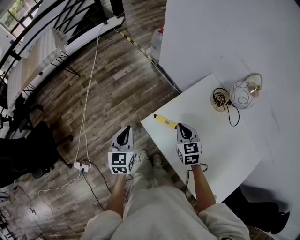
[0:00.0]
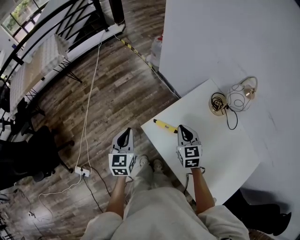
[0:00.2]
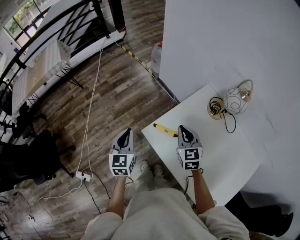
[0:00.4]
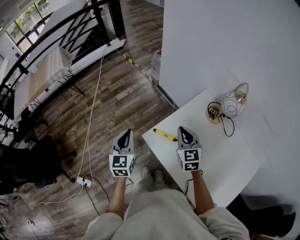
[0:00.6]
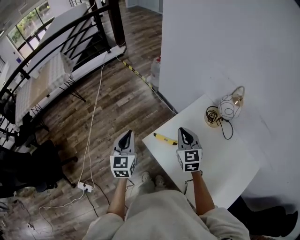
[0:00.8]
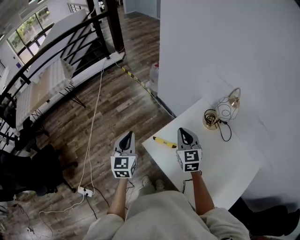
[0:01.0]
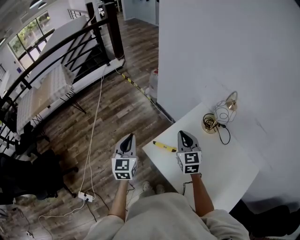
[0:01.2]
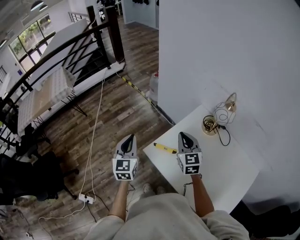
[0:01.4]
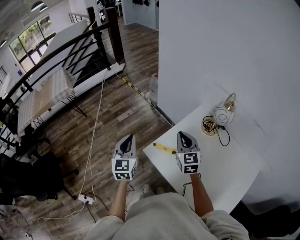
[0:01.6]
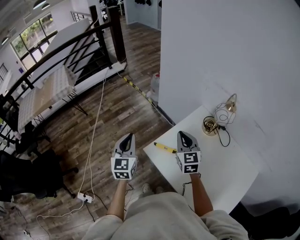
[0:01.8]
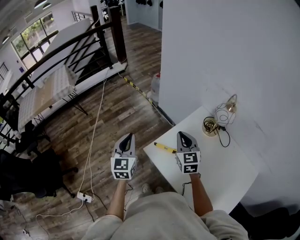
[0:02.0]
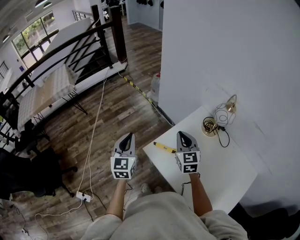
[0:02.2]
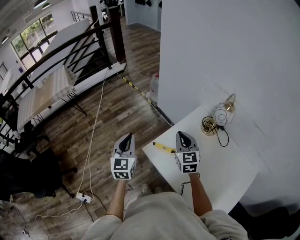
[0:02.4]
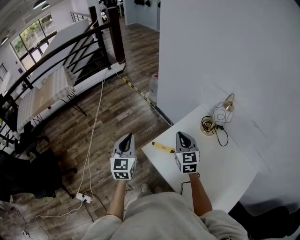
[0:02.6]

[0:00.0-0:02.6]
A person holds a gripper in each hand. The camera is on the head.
0:00.0 to 0:01.2: Both grippers move upward, about 15 cm. The right gripper turns by approximately 20 degrees.
0:01.2 to 0:02.6: The grippers move only a little.

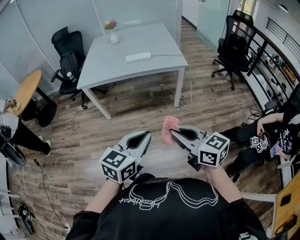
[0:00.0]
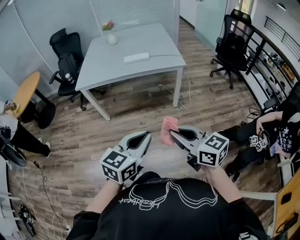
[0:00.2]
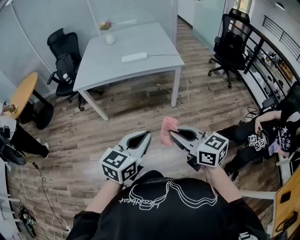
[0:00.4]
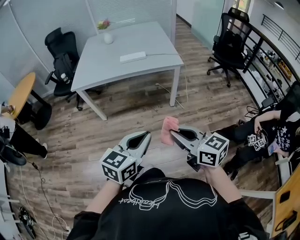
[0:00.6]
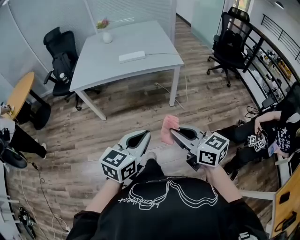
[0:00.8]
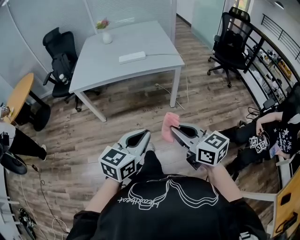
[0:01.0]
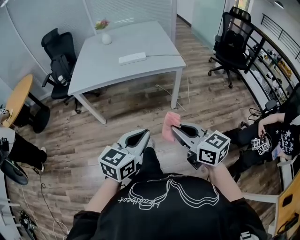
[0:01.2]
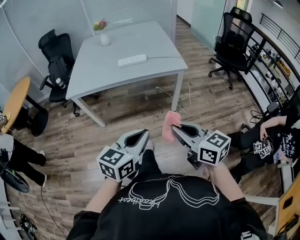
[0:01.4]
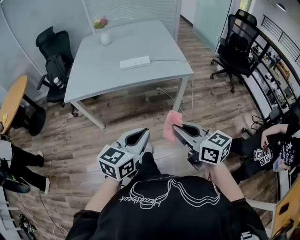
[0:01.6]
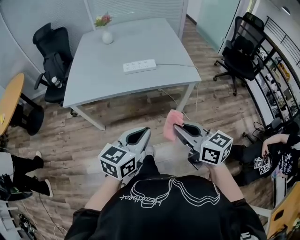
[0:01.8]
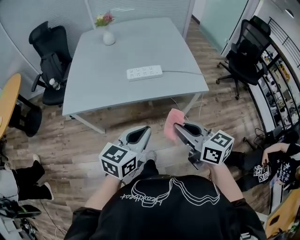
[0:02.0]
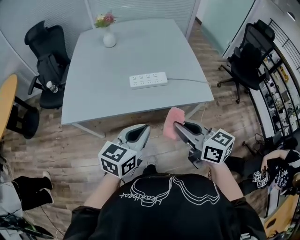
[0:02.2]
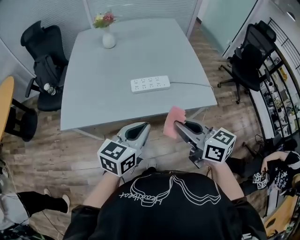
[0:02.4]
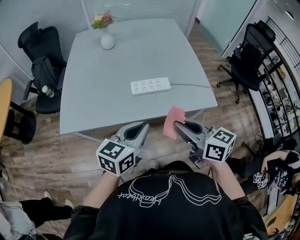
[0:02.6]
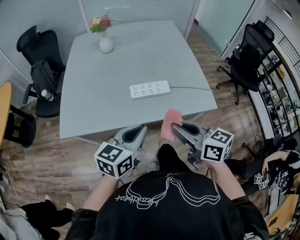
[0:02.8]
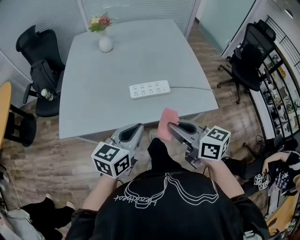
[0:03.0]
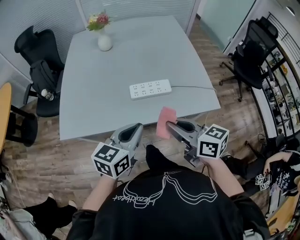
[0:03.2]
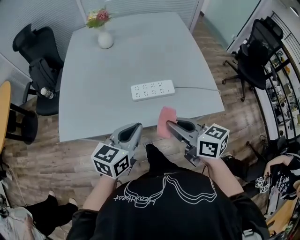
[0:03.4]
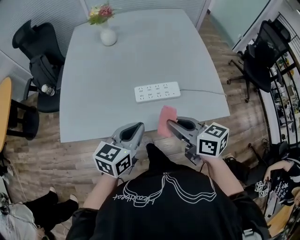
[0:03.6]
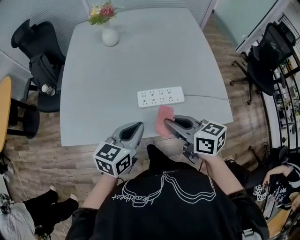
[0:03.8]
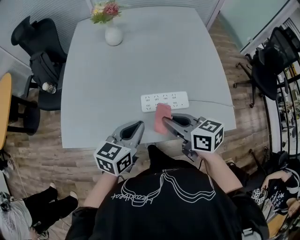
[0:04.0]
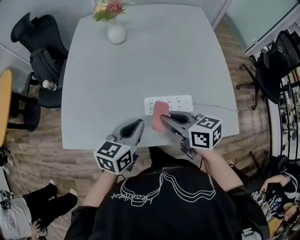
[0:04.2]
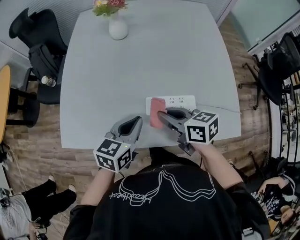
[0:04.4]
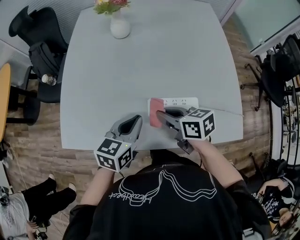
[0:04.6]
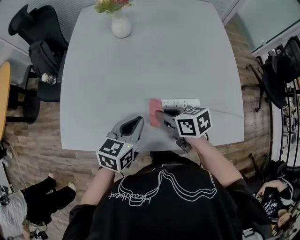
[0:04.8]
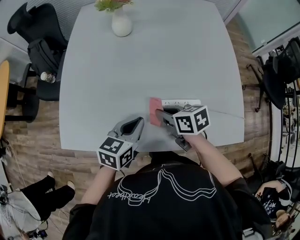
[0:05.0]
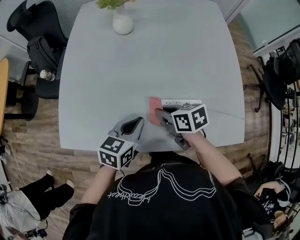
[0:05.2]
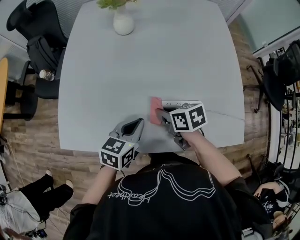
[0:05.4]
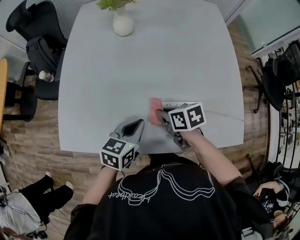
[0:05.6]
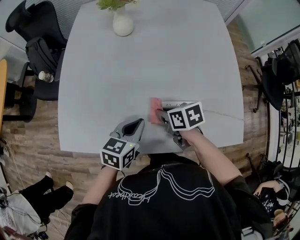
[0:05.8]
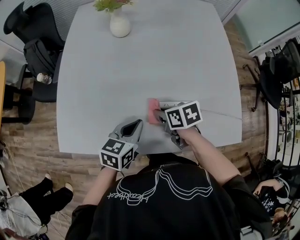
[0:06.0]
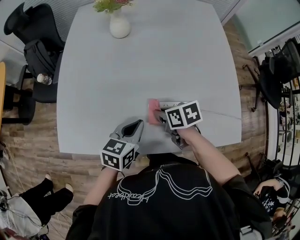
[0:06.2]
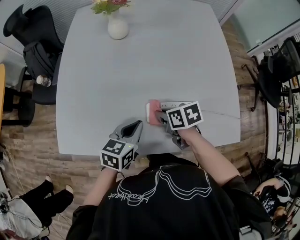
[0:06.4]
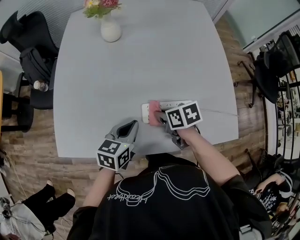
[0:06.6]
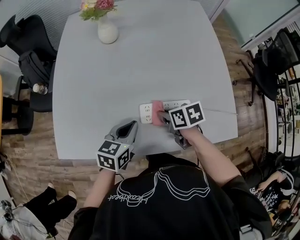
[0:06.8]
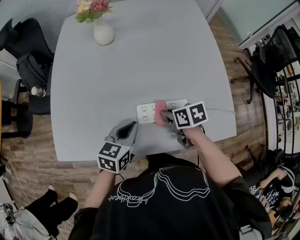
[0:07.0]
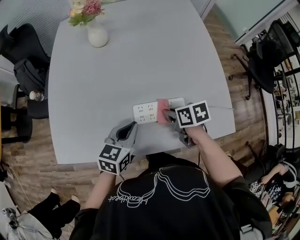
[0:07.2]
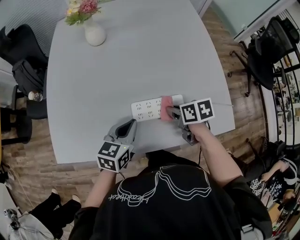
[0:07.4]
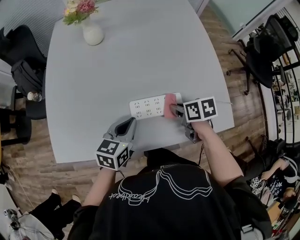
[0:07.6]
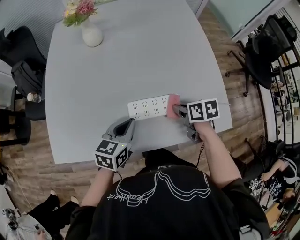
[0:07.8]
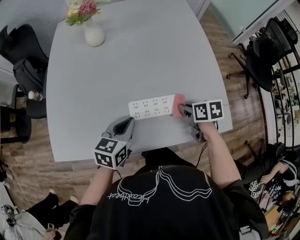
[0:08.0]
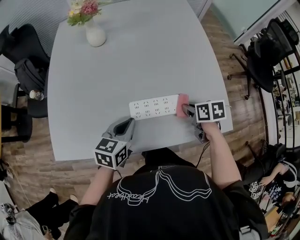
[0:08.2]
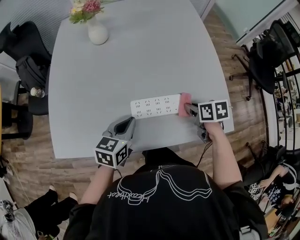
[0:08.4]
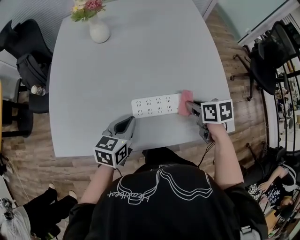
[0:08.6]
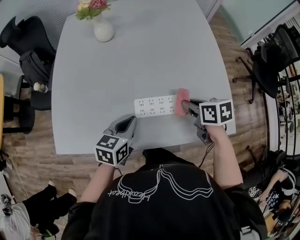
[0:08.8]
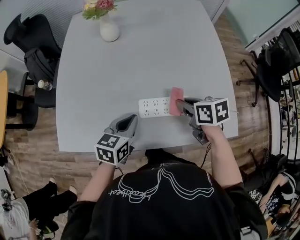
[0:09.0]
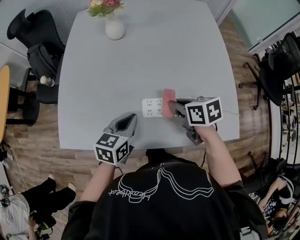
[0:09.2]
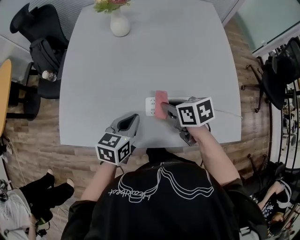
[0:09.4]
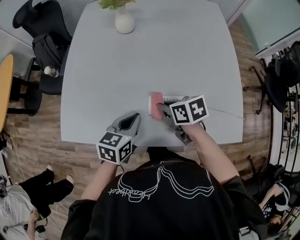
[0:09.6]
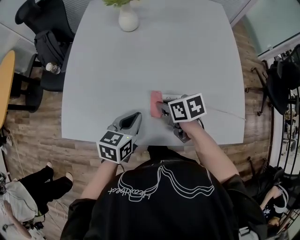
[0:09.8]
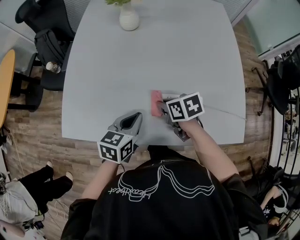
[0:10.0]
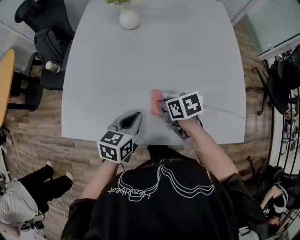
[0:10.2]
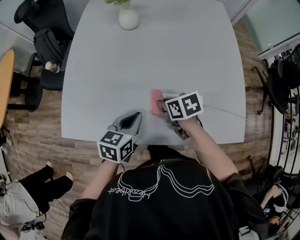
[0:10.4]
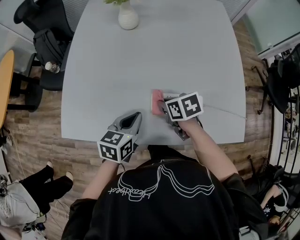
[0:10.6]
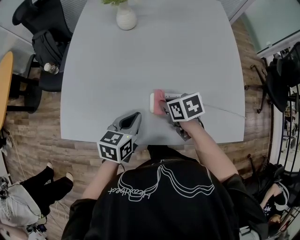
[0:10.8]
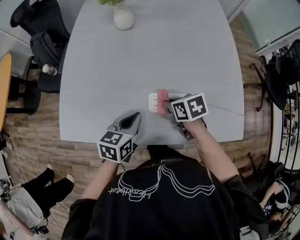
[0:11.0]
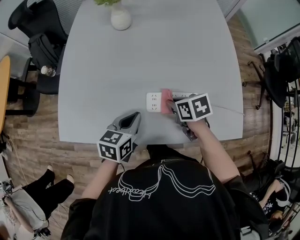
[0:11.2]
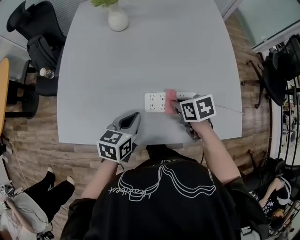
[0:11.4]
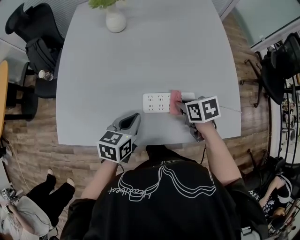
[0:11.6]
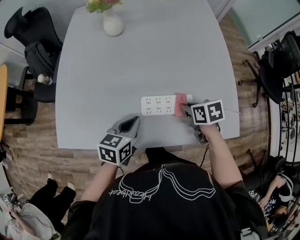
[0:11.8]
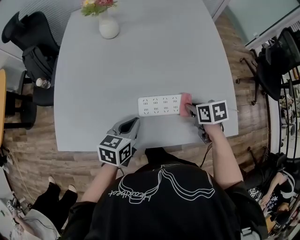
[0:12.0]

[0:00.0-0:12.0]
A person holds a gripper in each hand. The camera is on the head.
0:00.0 to 0:01.6: Both grippers move forward, some 20 cm.
0:01.6 to 0:03.0: Both grippers travel together forward, roughly 35 cm.
0:03.0 to 0:04.4: The two grippers go roughly 25 cm forward and downward.
0:04.4 to 0:06.0: The right gripper is displaced downward and forward by roughly 10 cm, and swivels some 30 degrees; the left gripper goes roughly 5 cm downward.
0:06.0 to 0:07.6: The left gripper shifts by some 5 cm; the right gripper travels to the right by roughly 15 cm.
0:07.6 to 0:09.0: The right gripper shifts some 5 cm upward, and moves roughly 5 cm to the right and comes back.
0:09.0 to 0:10.4: The right gripper goes approximately 15 cm to the left and downward.
0:10.4 to 0:12.0: The right gripper is displaced to the right by roughly 20 cm.

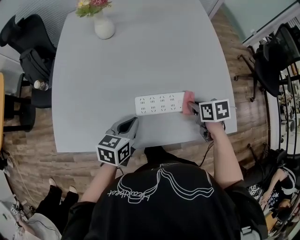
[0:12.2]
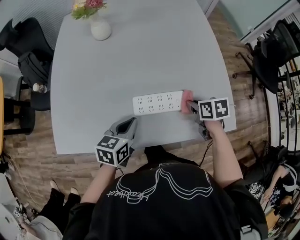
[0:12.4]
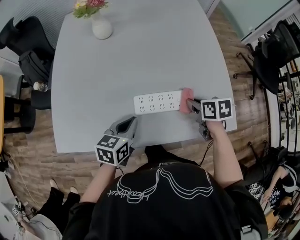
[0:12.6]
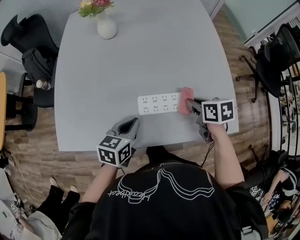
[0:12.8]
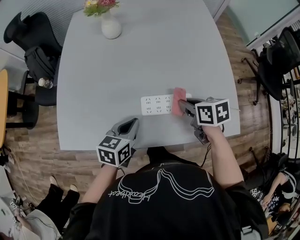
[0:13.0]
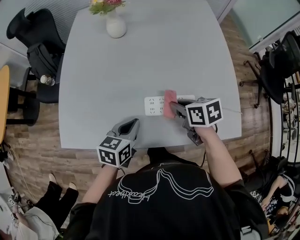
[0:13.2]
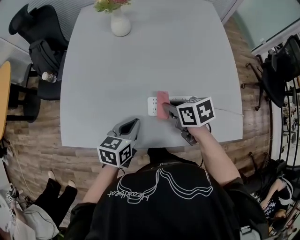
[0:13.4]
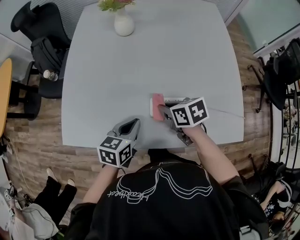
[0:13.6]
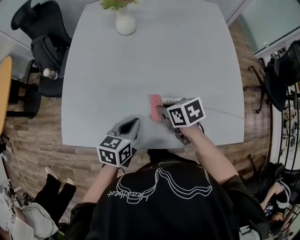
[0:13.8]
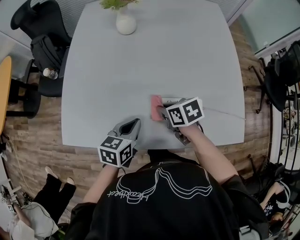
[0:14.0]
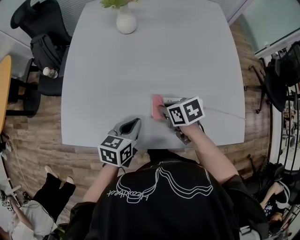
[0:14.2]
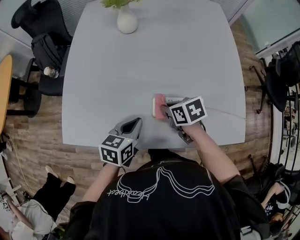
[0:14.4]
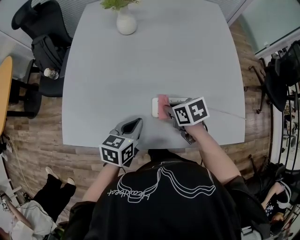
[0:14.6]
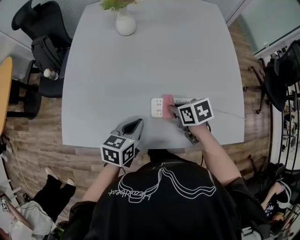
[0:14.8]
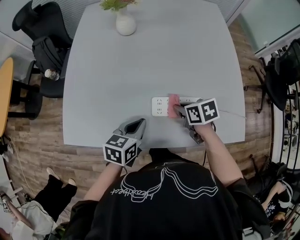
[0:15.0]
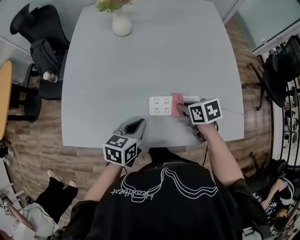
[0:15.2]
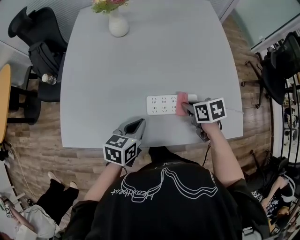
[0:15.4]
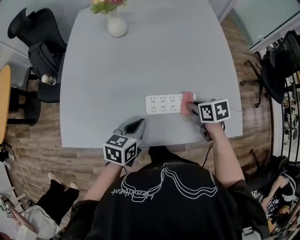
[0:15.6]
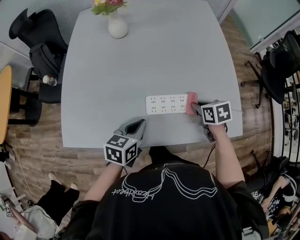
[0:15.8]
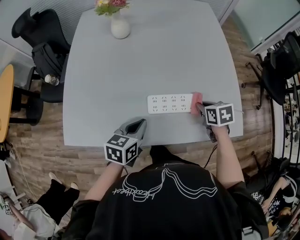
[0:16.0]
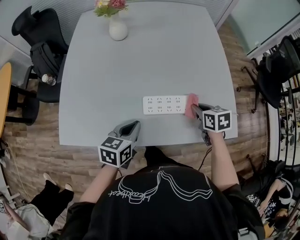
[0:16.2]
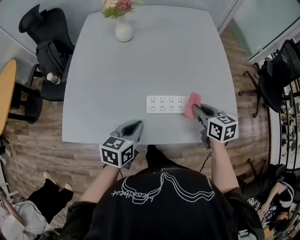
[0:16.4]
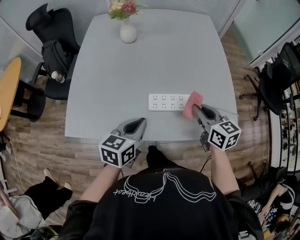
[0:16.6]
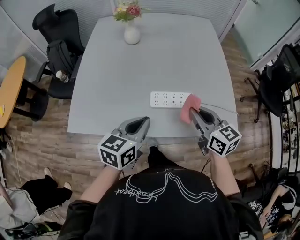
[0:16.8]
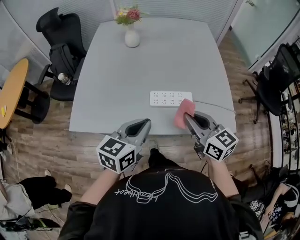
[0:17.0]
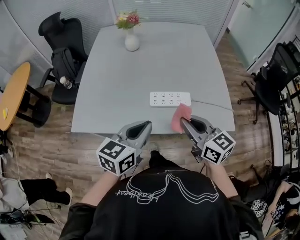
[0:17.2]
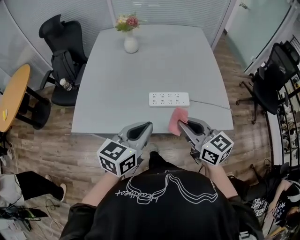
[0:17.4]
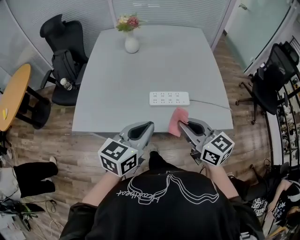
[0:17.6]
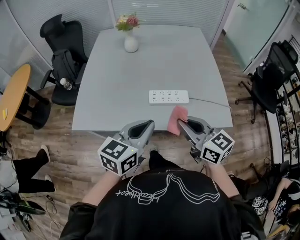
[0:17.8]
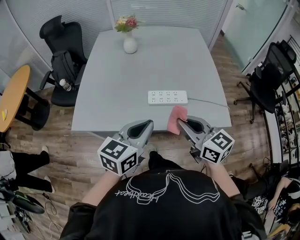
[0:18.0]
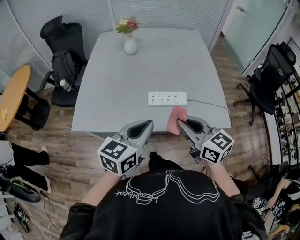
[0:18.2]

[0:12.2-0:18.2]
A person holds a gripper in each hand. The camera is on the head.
0:12.2 to 0:13.8: The right gripper moves to the left, about 20 cm, and swivels some 20 degrees; the left gripper heads to the left, covering approximately 5 cm.
0:13.8 to 0:15.2: The right gripper goes about 10 cm to the right.
0:15.2 to 0:16.6: The left gripper travels upward by some 10 cm, while the right gripper travels upward, to the right and backward by approximately 15 cm, and tilts its fingers about 30 degrees upward.
0:16.6 to 0:18.2: The left gripper shifts approximately 15 cm backward and upward; the right gripper moves backward, upward and to the left, roughly 20 cm.

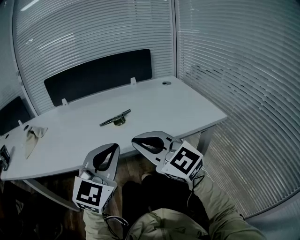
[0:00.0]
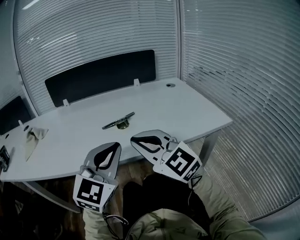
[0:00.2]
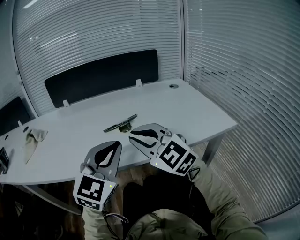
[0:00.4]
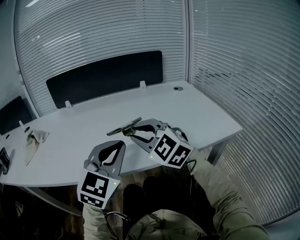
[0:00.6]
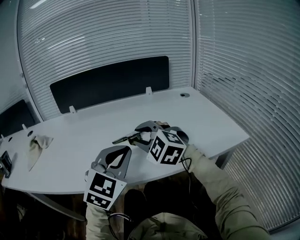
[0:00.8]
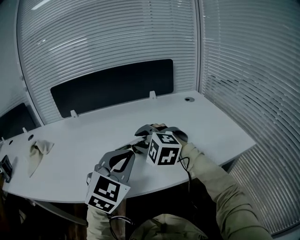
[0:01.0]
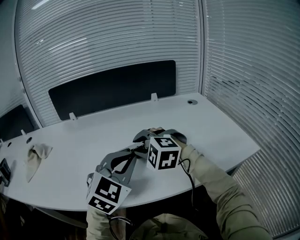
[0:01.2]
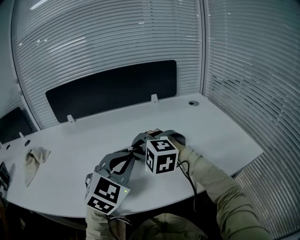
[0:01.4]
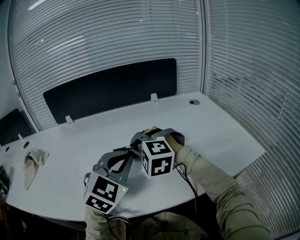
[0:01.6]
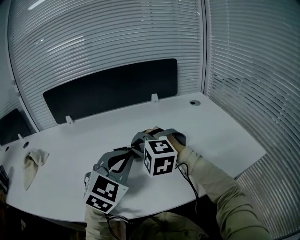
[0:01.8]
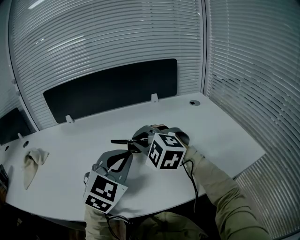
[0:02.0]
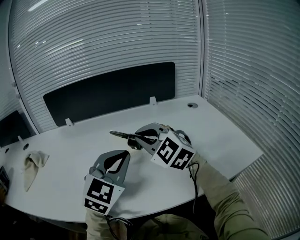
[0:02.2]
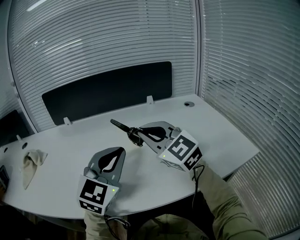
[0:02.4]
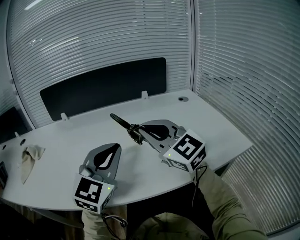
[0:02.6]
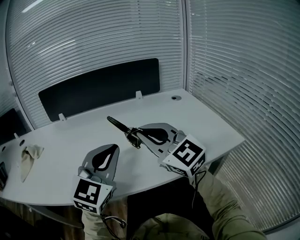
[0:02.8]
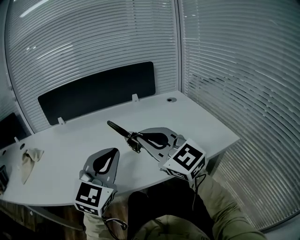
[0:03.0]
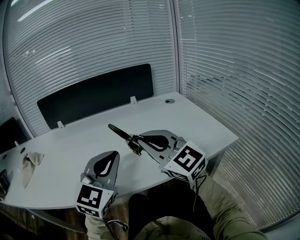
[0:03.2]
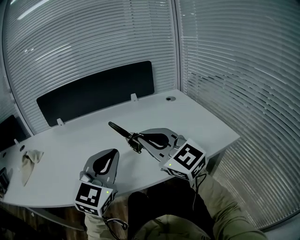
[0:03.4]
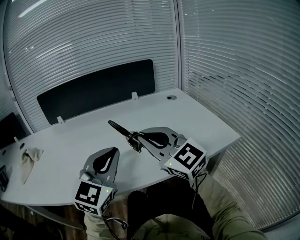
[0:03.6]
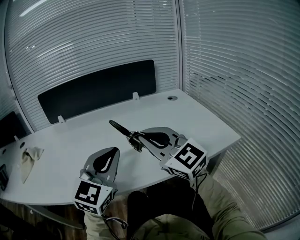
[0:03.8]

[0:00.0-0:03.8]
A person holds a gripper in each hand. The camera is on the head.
0:00.0 to 0:01.2: The two grippers go roughly 20 cm forward. The right gripper angles its fingers downward, by roughly 40 degrees, and opens.
0:01.2 to 0:02.6: The right gripper goes roughly 15 cm upward and to the right, tilts its fingers approximately 40 degrees upward, and closes up.
0:02.6 to 0:03.8: The right gripper heads backward, covering some 5 cm.
